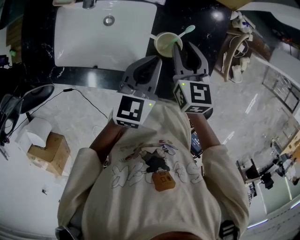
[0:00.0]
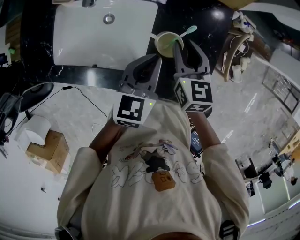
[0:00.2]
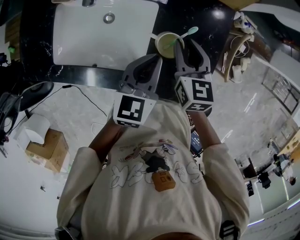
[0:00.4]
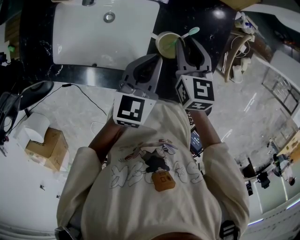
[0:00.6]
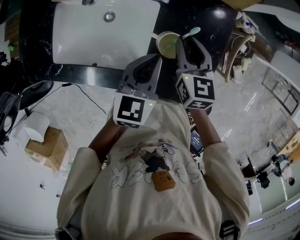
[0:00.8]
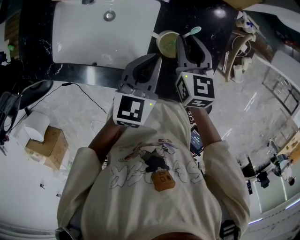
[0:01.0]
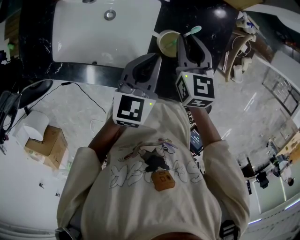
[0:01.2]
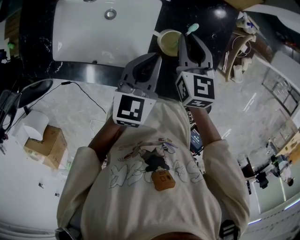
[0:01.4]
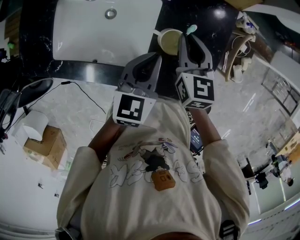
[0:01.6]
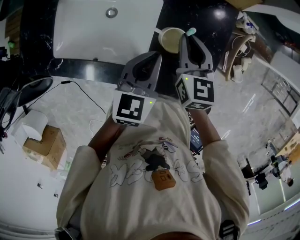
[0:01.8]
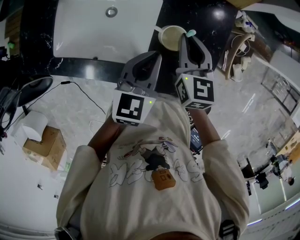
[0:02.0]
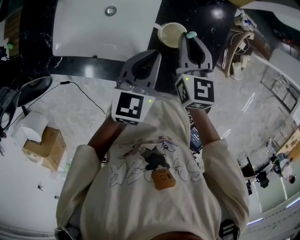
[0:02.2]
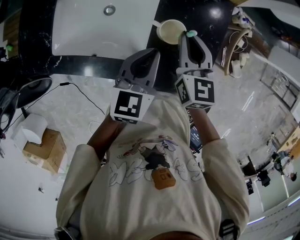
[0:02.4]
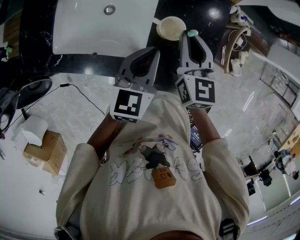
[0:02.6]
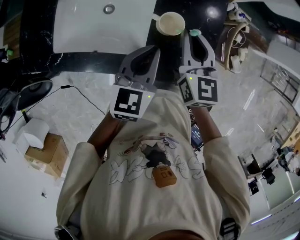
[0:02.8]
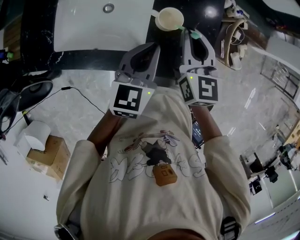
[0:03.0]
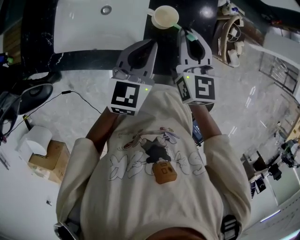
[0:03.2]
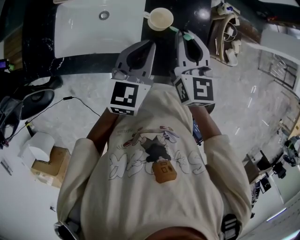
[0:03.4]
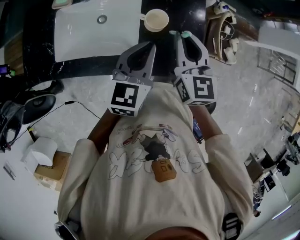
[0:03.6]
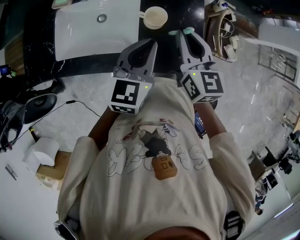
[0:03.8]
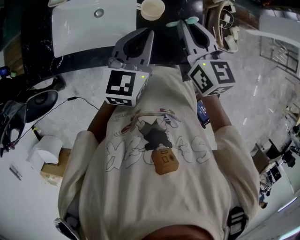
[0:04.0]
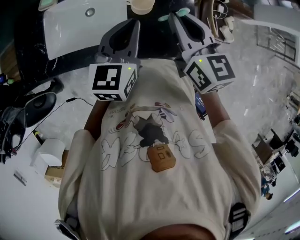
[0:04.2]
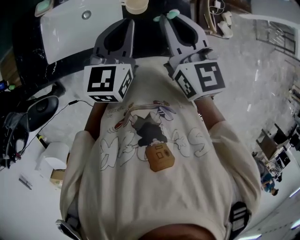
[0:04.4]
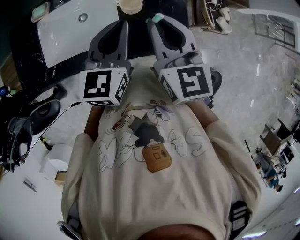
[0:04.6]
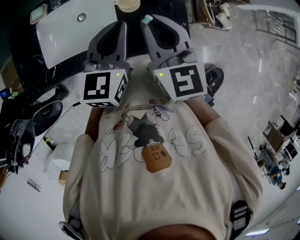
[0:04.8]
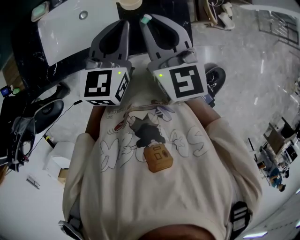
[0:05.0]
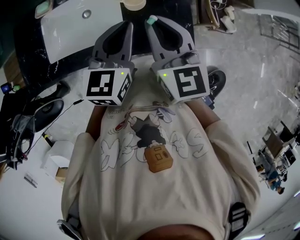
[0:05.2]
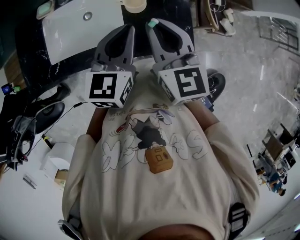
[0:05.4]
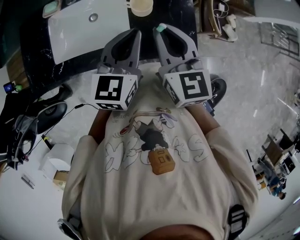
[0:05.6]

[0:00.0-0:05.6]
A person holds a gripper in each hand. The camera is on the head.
0:00.0 to 0:01.4: There are only small adjustments of the grippers.
0:01.4 to 0:02.8: The right gripper shifts some 10 cm upward and backward. The left gripper travels backward by approximately 5 cm.
0:02.8 to 0:04.2: The left gripper shifts approximately 5 cm upward; the right gripper travels upward and backward by roughly 10 cm.
0:04.2 to 0:05.6: The right gripper heads backward, covering some 5 cm.

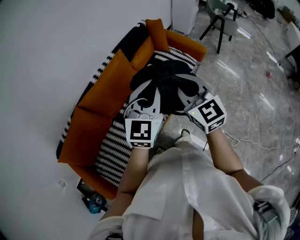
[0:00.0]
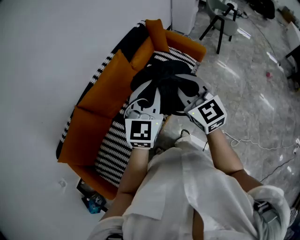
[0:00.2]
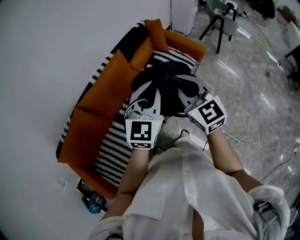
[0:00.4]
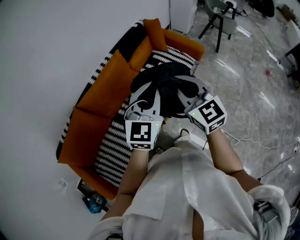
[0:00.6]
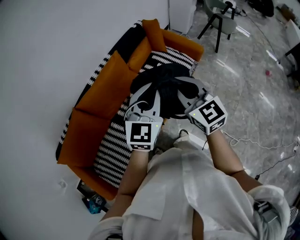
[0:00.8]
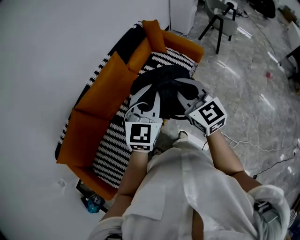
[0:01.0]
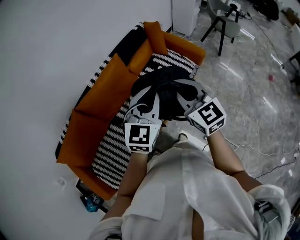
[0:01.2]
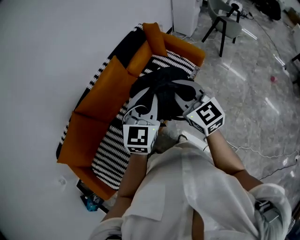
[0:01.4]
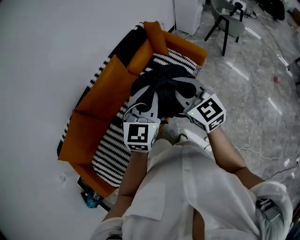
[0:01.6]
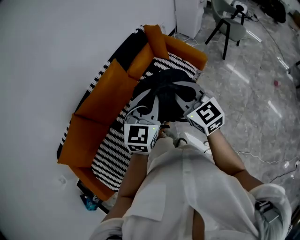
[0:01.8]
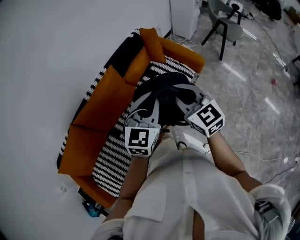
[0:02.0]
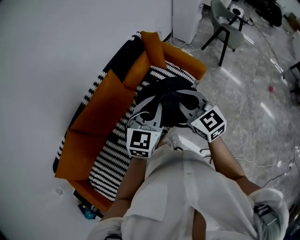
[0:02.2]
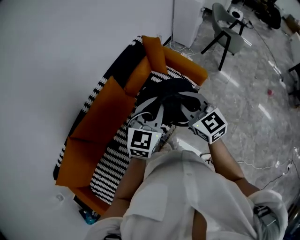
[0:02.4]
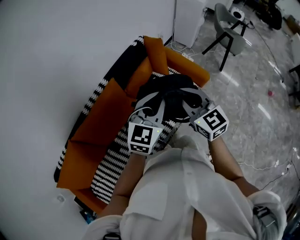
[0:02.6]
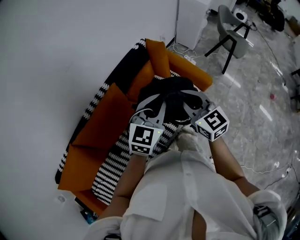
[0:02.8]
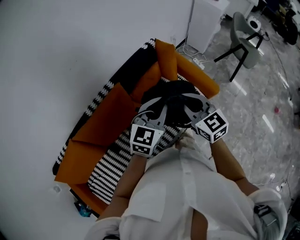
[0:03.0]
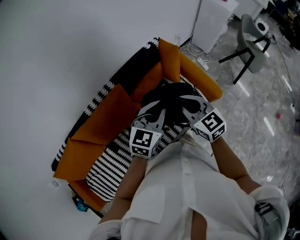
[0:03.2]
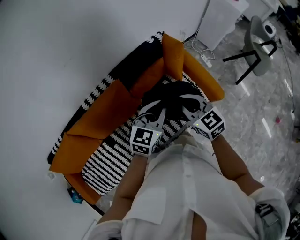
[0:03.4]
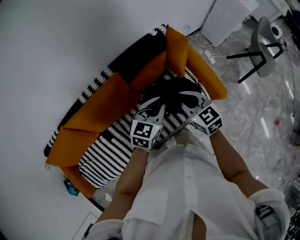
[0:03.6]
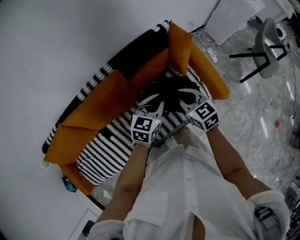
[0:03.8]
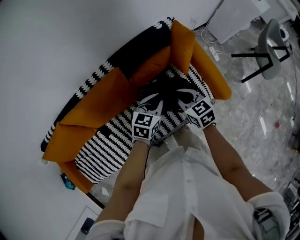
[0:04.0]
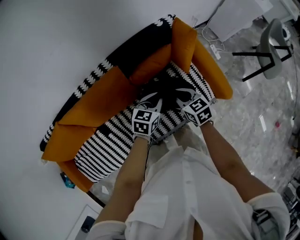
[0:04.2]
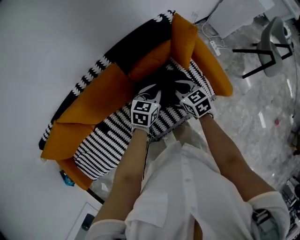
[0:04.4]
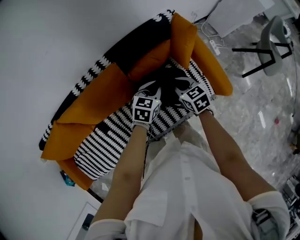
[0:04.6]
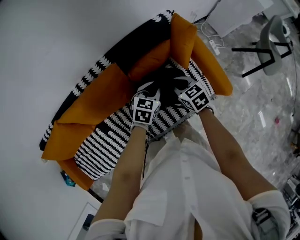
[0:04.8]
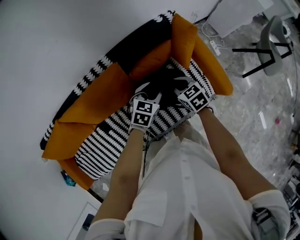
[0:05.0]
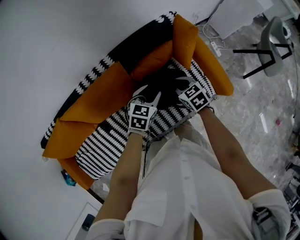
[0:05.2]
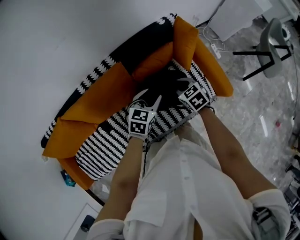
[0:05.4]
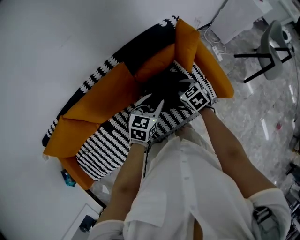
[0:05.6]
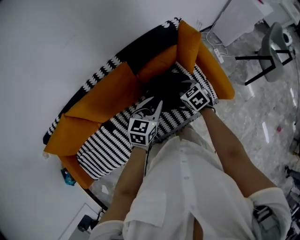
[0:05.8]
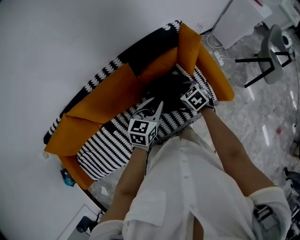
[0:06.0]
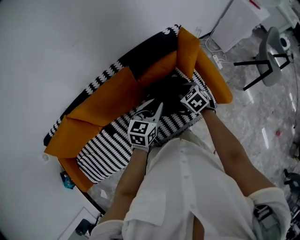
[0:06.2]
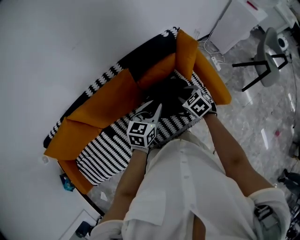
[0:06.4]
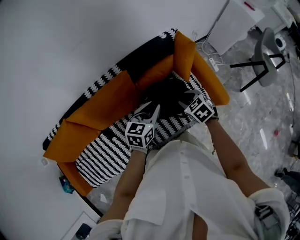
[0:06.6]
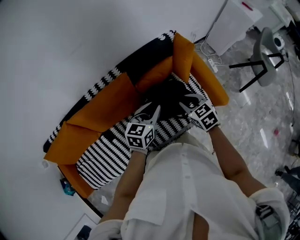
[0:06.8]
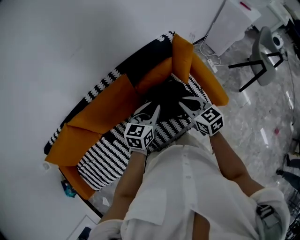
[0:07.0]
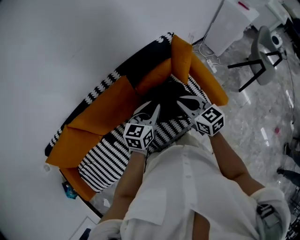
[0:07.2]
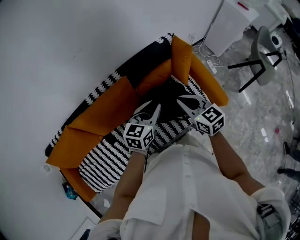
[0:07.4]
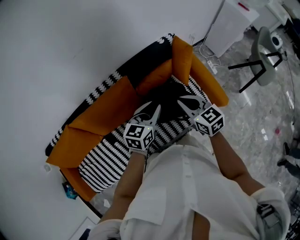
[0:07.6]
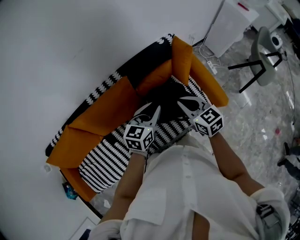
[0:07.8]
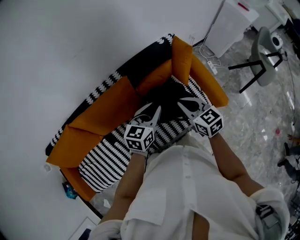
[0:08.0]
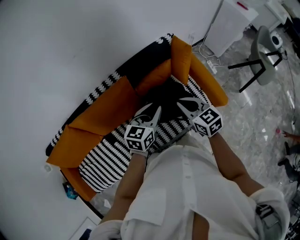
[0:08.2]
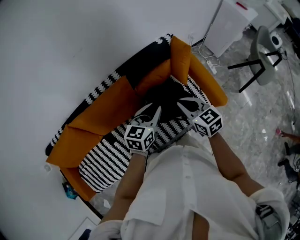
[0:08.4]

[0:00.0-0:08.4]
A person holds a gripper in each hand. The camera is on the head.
0:00.0 to 0:01.4: Both grippers move to the right, approximately 5 cm.
0:01.4 to 0:02.8: The grippers both shift forward by roughly 25 cm.
0:02.8 to 0:04.2: Both grippers travel together downward and forward, roughly 30 cm. The right gripper swivels approximately 40 degrees, while the left gripper swivels roughly 40 degrees.
0:04.2 to 0:05.6: The left gripper shifts roughly 5 cm upward, and opens its fingers.
0:05.6 to 0:07.0: The left gripper moves upward, about 5 cm, while the right gripper moves upward, about 15 cm, and rotates roughly 20 degrees.
0:07.0 to 0:08.4: The grippers make only small movements.

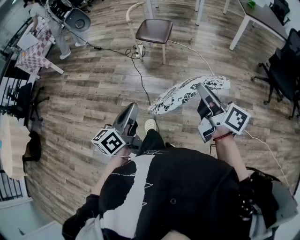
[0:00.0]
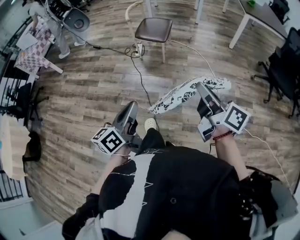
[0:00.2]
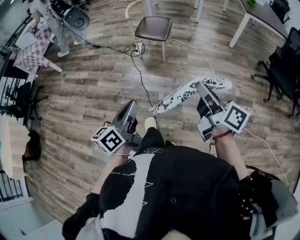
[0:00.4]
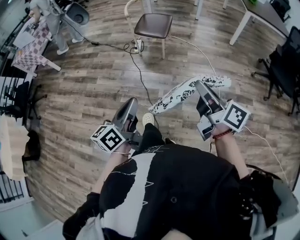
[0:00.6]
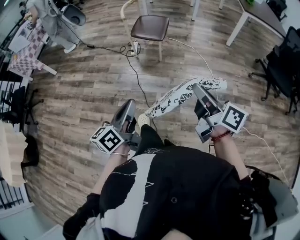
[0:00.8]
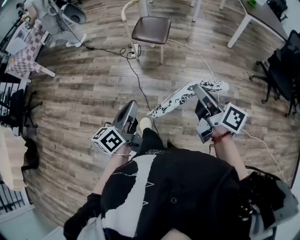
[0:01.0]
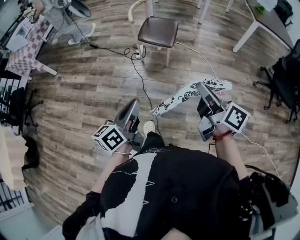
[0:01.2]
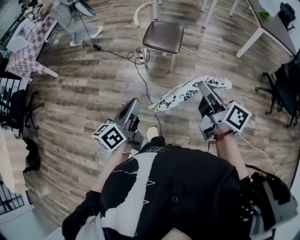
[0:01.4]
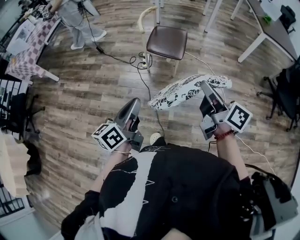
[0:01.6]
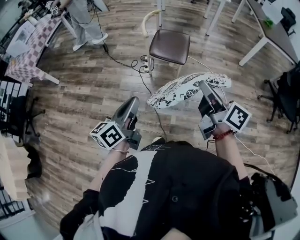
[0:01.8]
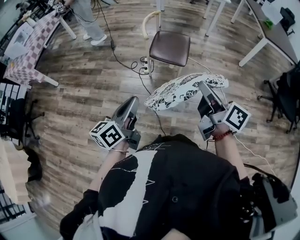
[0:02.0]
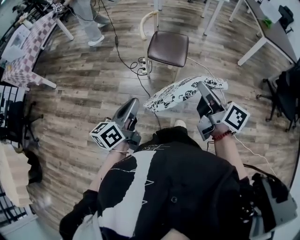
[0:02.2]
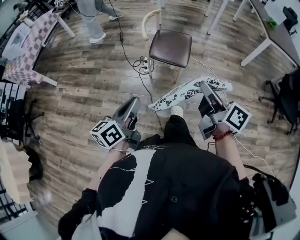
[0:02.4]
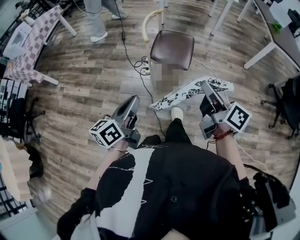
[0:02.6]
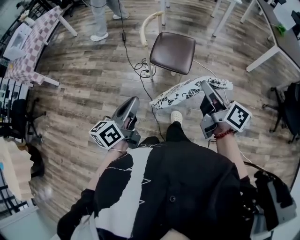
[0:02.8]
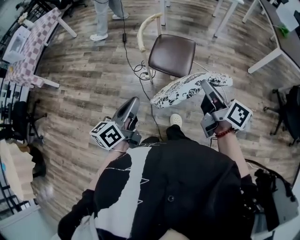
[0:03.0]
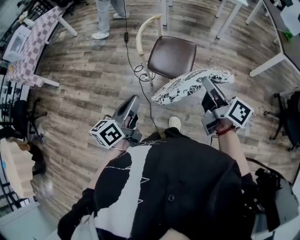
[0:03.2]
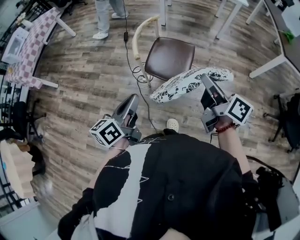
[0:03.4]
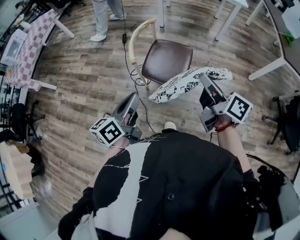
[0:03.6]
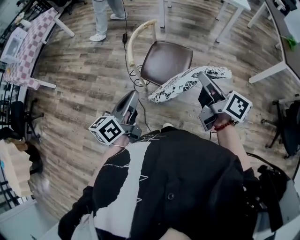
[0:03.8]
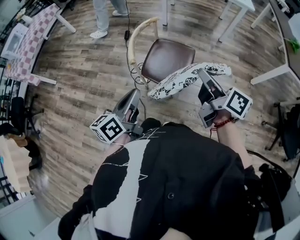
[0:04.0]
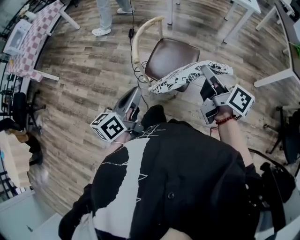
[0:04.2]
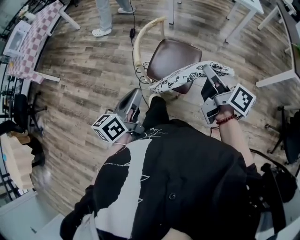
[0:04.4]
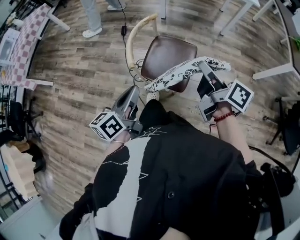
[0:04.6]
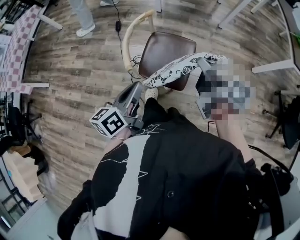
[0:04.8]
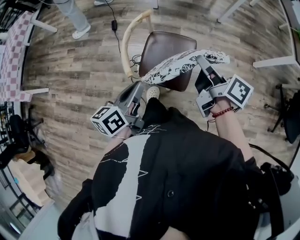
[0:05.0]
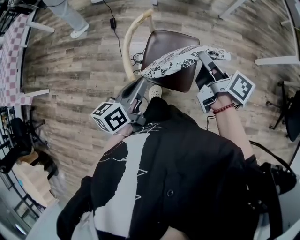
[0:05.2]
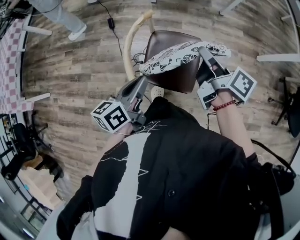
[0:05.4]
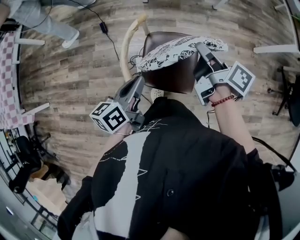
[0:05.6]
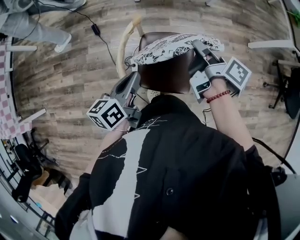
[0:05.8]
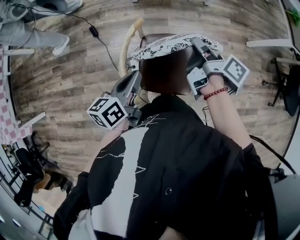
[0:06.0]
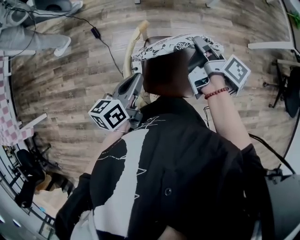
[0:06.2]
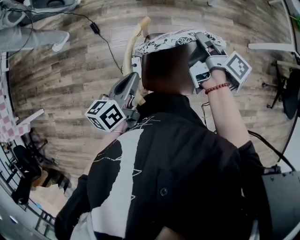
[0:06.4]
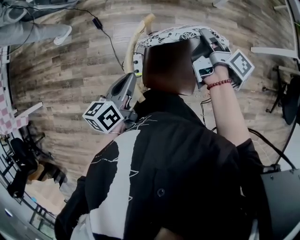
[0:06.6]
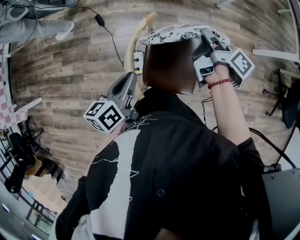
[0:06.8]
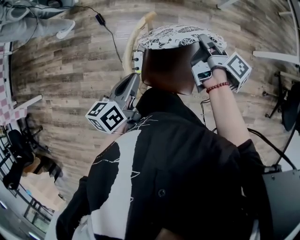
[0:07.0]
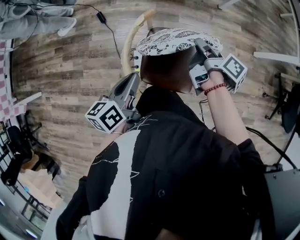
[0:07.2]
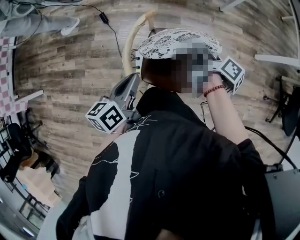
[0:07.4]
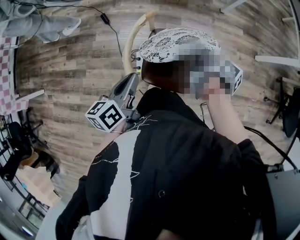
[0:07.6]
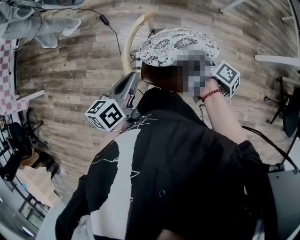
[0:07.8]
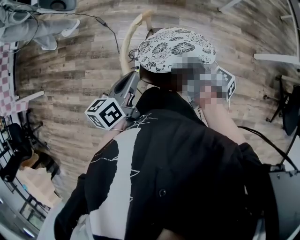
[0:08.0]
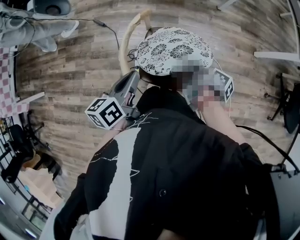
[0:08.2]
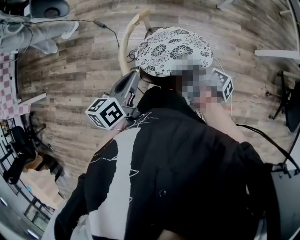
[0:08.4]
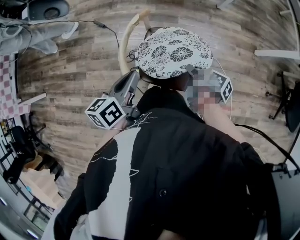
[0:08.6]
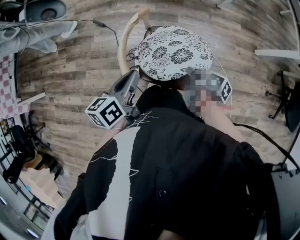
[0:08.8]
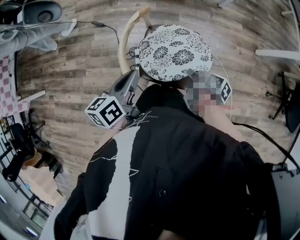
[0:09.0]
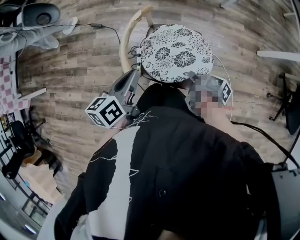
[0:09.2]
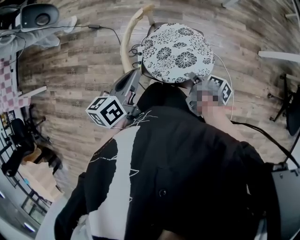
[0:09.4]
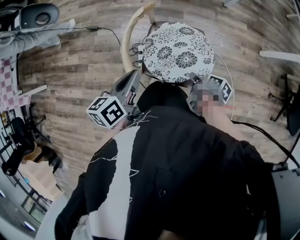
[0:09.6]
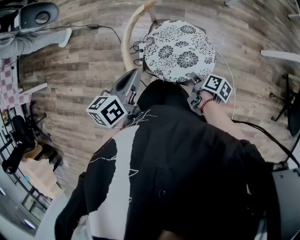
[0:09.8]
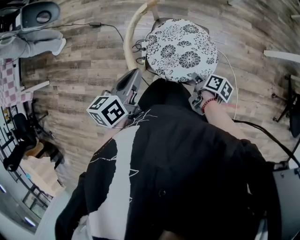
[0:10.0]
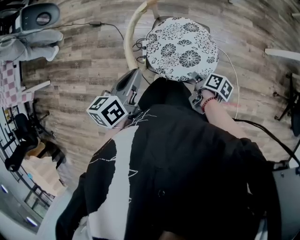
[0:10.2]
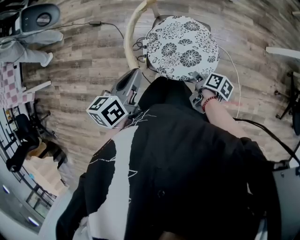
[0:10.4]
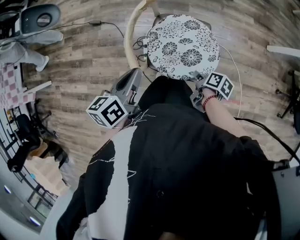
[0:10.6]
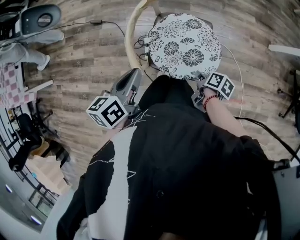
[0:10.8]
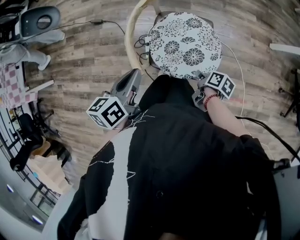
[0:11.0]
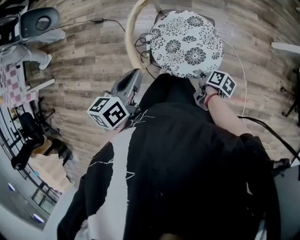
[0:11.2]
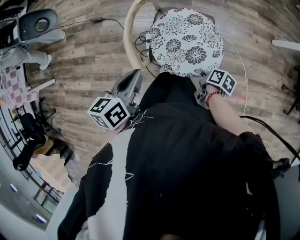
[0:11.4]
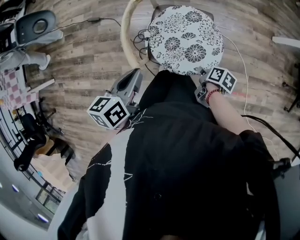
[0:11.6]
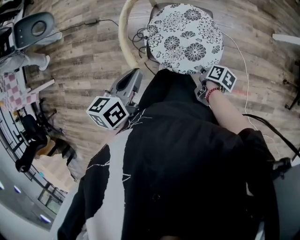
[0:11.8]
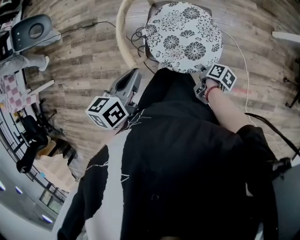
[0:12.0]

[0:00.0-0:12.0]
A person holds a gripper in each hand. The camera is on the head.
0:00.0 to 0:01.6: The left gripper moves approximately 35 cm.
0:01.6 to 0:03.0: The left gripper moves approximately 20 cm.
0:03.0 to 0:04.4: The left gripper changes place by about 15 cm.
0:04.4 to 0:06.0: The left gripper changes place by some 30 cm, and rotates roughly 30 degrees.
0:06.0 to 0:07.6: The left gripper ends up about 5 cm from where it was.
